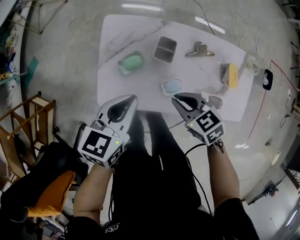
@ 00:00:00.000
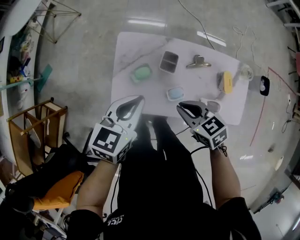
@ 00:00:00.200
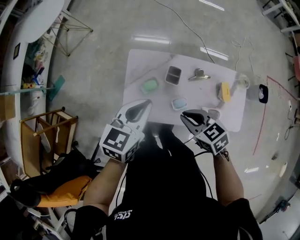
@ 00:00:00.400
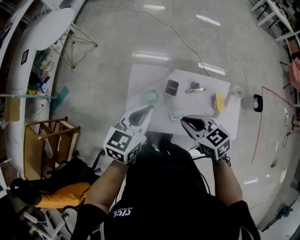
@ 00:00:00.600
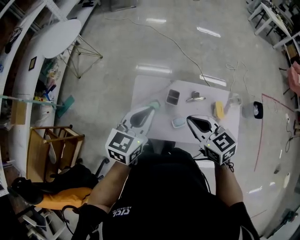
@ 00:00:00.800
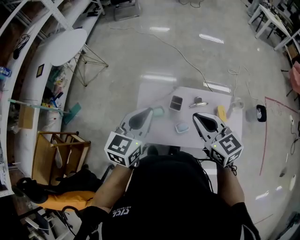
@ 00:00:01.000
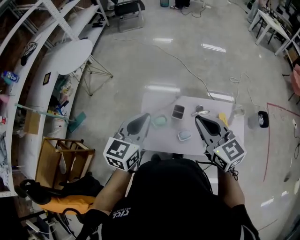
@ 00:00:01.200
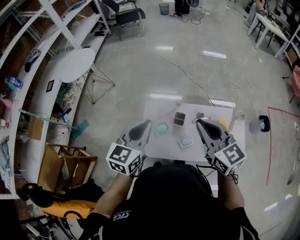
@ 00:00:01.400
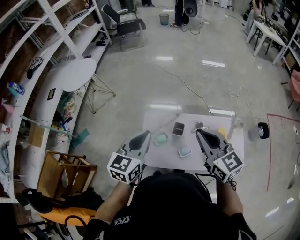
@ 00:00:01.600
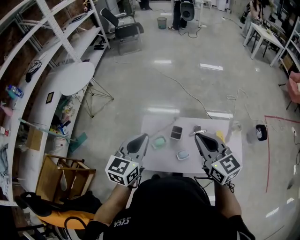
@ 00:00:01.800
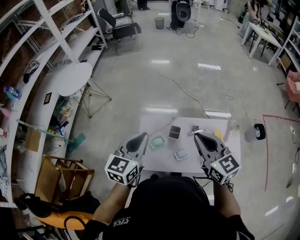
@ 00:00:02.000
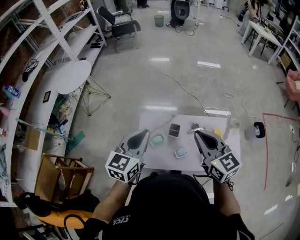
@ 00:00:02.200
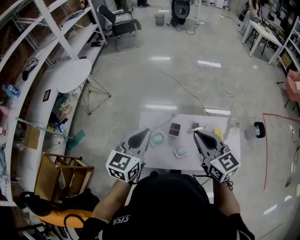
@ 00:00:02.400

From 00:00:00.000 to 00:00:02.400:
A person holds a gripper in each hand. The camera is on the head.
From 00:00:00.000 to 00:00:01.200: Both grippers travel together upward, approximately 35 cm. The right gripper tilts its fingers about 30 degrees upward. The left gripper swivels approximately 30 degrees.
From 00:00:01.200 to 00:00:02.400: The grippers stay close to where they were, moving slightly.

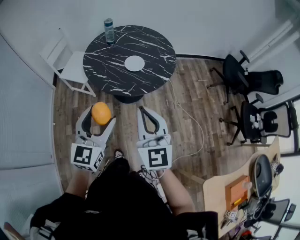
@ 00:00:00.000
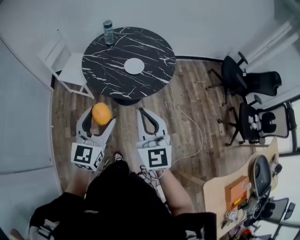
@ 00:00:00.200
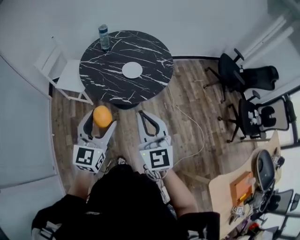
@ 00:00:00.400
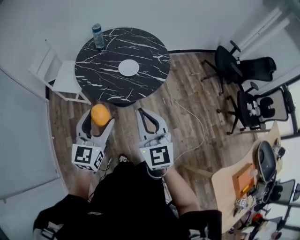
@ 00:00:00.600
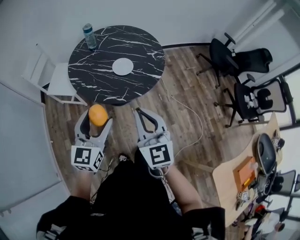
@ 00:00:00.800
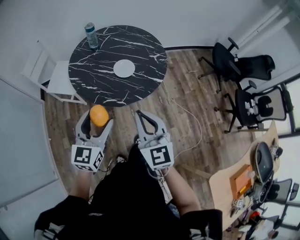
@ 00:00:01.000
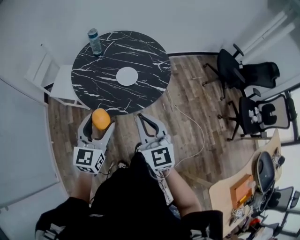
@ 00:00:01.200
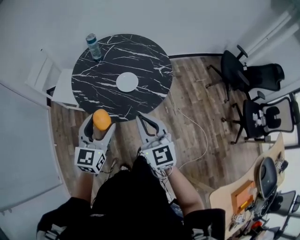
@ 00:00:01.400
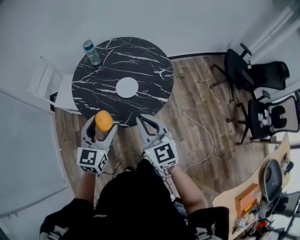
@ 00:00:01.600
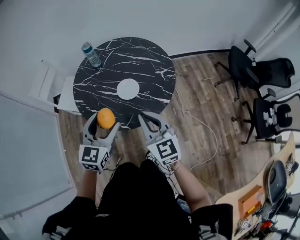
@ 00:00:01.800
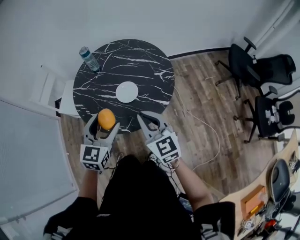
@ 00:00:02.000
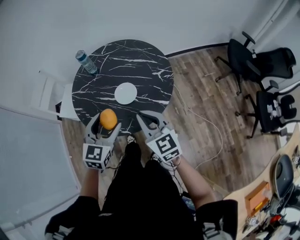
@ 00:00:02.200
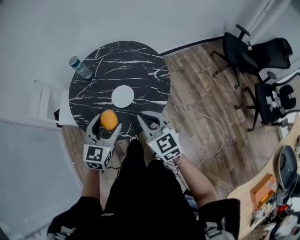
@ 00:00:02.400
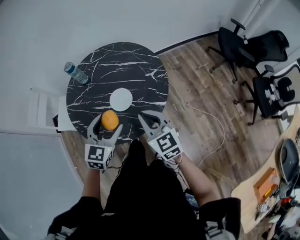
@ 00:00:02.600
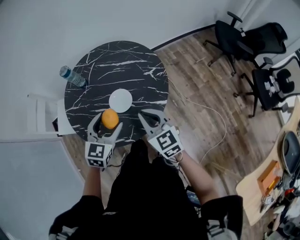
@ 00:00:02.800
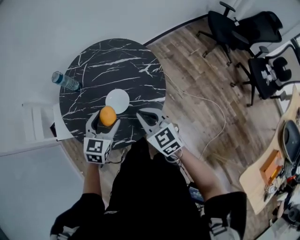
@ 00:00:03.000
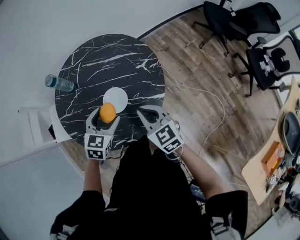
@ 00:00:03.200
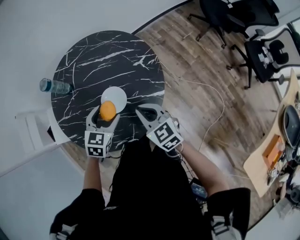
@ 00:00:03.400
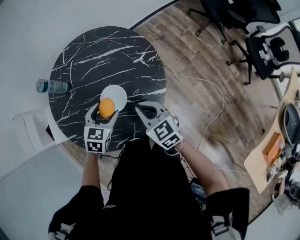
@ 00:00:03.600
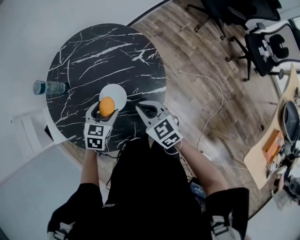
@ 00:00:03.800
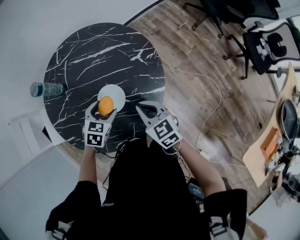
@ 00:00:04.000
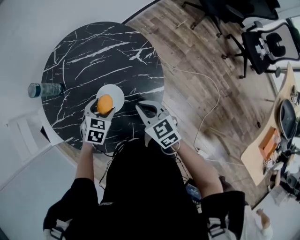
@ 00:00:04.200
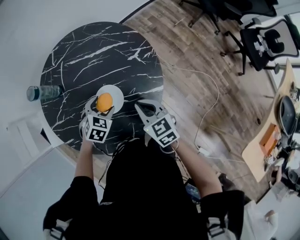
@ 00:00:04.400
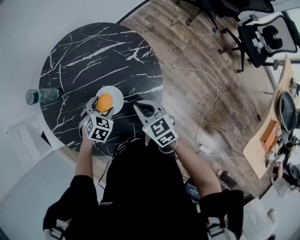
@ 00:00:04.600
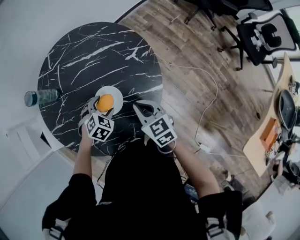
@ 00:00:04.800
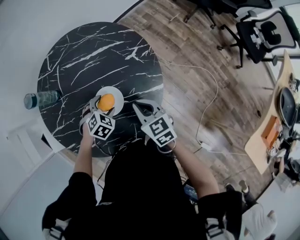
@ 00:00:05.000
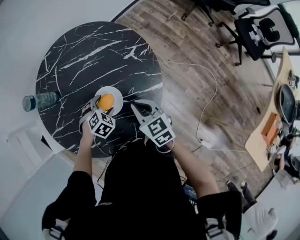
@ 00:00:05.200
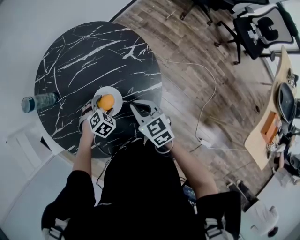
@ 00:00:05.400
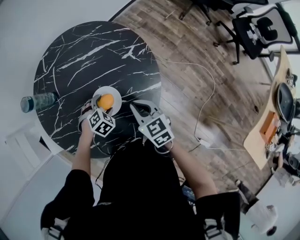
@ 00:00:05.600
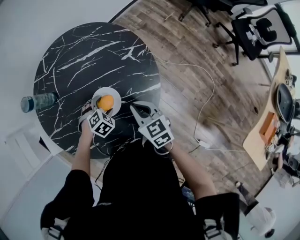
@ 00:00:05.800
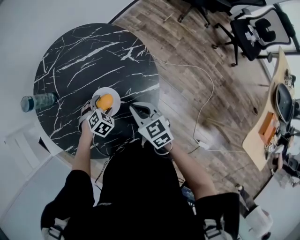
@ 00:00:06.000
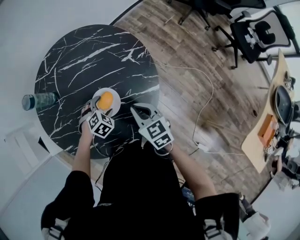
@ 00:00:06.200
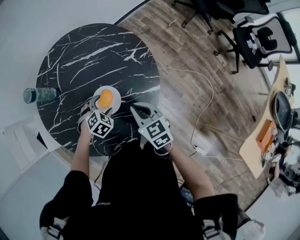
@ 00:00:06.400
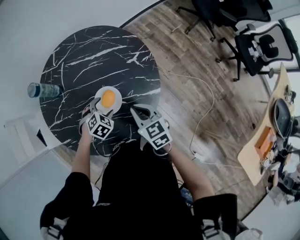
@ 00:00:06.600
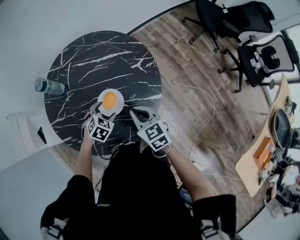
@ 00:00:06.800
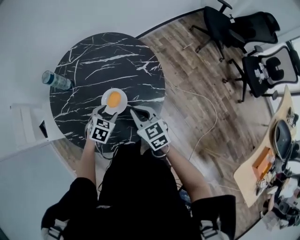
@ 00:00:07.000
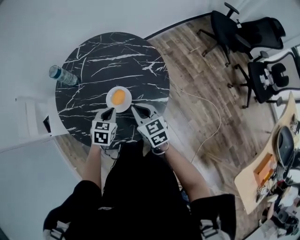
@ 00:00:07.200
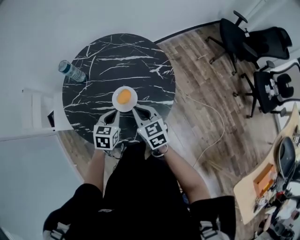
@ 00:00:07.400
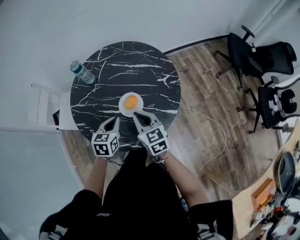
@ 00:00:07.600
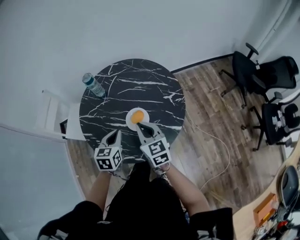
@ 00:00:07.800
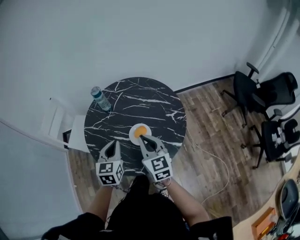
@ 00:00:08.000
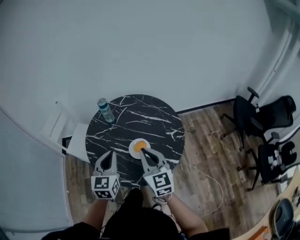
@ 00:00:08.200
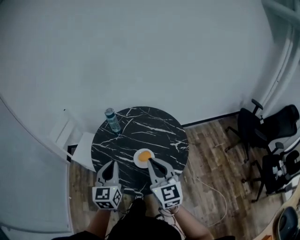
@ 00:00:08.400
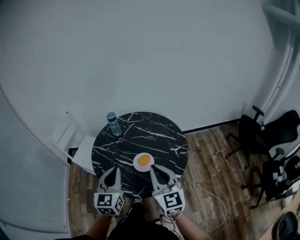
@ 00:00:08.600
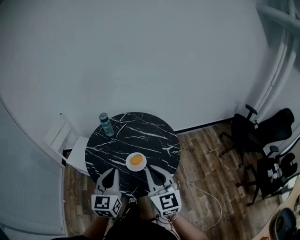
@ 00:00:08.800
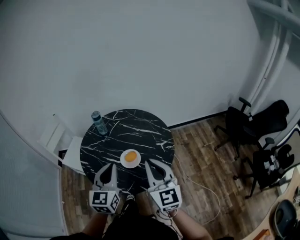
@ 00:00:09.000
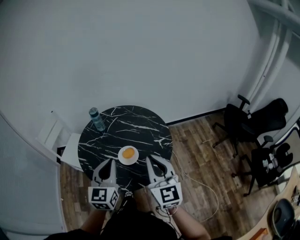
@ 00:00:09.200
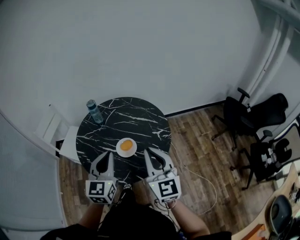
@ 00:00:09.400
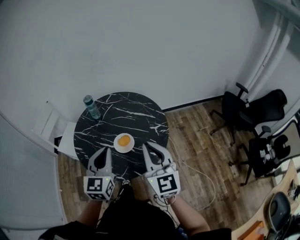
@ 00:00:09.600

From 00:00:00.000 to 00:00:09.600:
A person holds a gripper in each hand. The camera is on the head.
From 00:00:00.000 to 00:00:01.600: Both grippers travel together forward, approximately 20 cm.
From 00:00:01.600 to 00:00:03.200: The two grippers go some 20 cm forward and downward. The left gripper swivels some 30 degrees; the right gripper changes its angle by approximately 20 degrees.
From 00:00:03.200 to 00:00:04.800: The left gripper moves downward and forward, about 20 cm, and turns by some 40 degrees. The right gripper travels downward by about 10 cm.
From 00:00:04.800 to 00:00:06.400: There are only small adjustments of the grippers.
From 00:00:06.400 to 00:00:08.000: The right gripper travels upward by about 15 cm, and turns by about 30 degrees, while the left gripper travels upward by approximately 25 cm, tips its fingers upward by approximately 40 degrees, and closes up.
From 00:00:08.000 to 00:00:09.600: The right gripper is displaced upward, to the right and backward by about 20 cm. The left gripper is displaced upward, backward and to the right by roughly 15 cm.

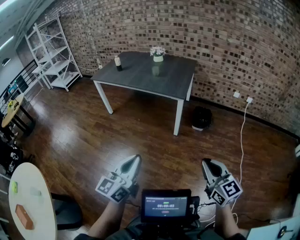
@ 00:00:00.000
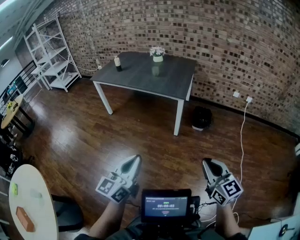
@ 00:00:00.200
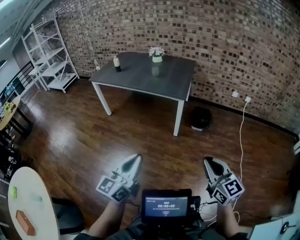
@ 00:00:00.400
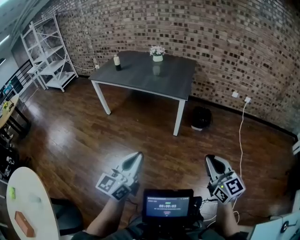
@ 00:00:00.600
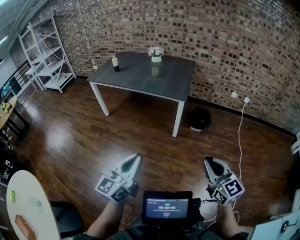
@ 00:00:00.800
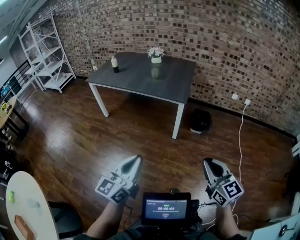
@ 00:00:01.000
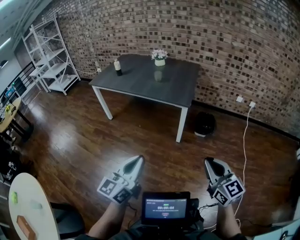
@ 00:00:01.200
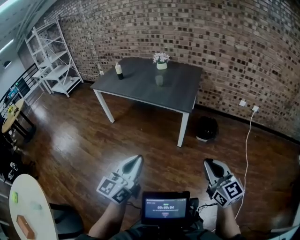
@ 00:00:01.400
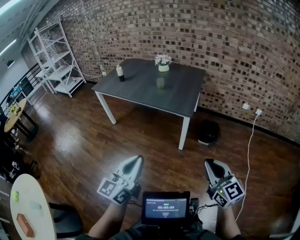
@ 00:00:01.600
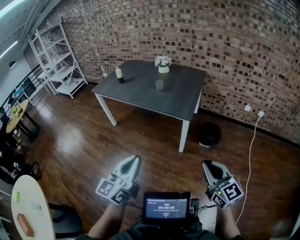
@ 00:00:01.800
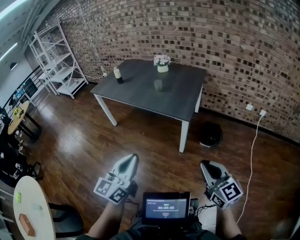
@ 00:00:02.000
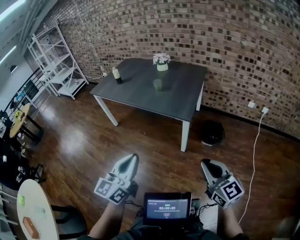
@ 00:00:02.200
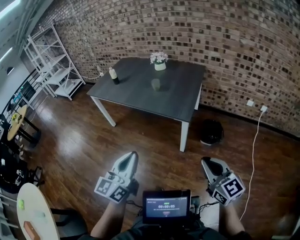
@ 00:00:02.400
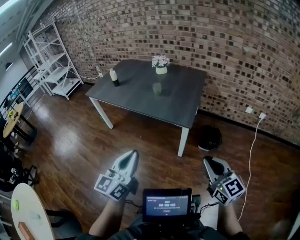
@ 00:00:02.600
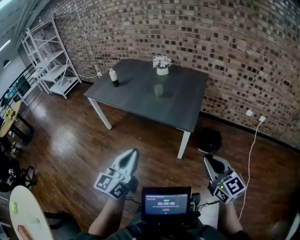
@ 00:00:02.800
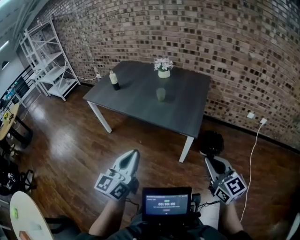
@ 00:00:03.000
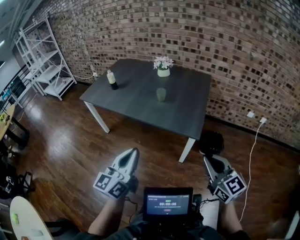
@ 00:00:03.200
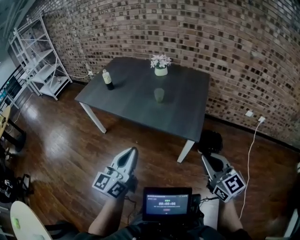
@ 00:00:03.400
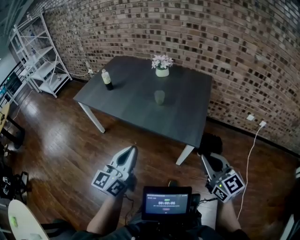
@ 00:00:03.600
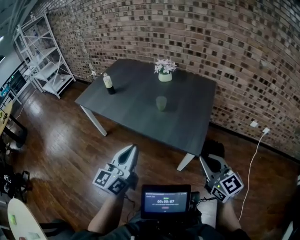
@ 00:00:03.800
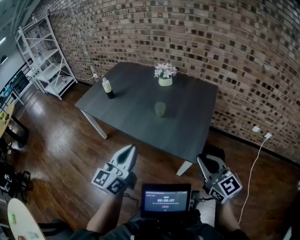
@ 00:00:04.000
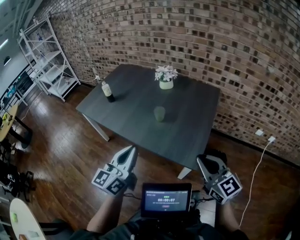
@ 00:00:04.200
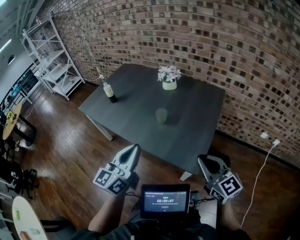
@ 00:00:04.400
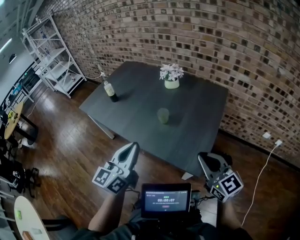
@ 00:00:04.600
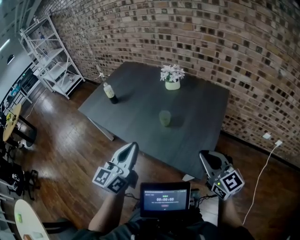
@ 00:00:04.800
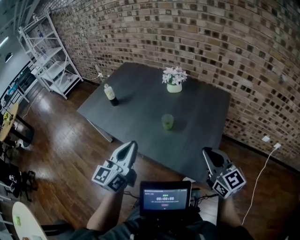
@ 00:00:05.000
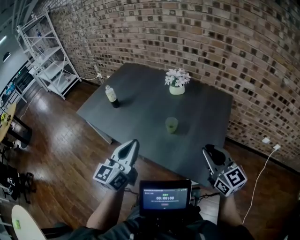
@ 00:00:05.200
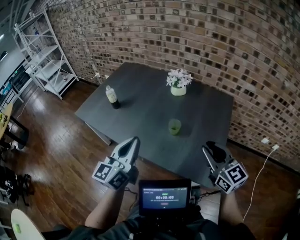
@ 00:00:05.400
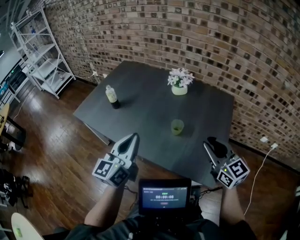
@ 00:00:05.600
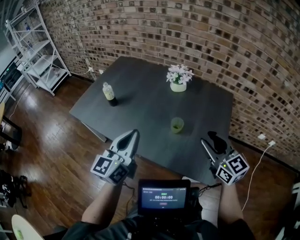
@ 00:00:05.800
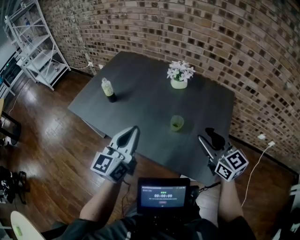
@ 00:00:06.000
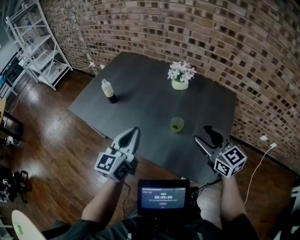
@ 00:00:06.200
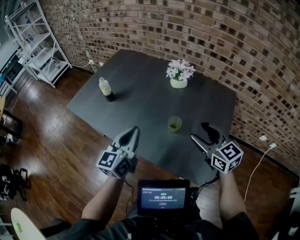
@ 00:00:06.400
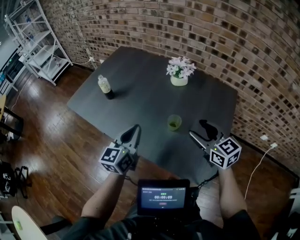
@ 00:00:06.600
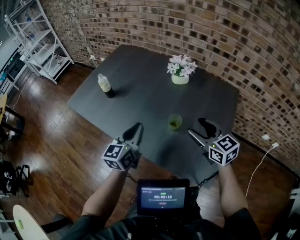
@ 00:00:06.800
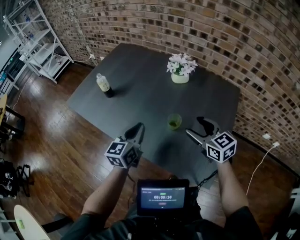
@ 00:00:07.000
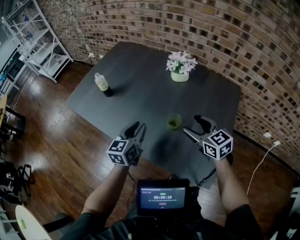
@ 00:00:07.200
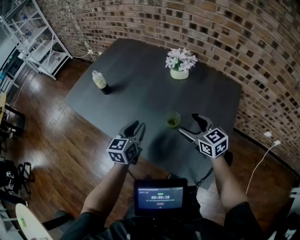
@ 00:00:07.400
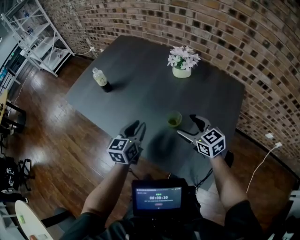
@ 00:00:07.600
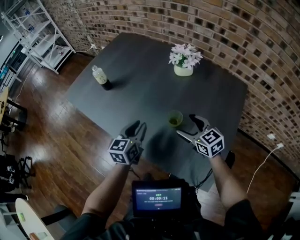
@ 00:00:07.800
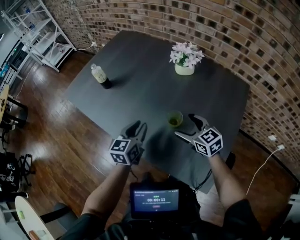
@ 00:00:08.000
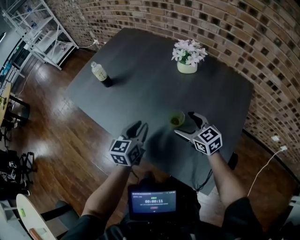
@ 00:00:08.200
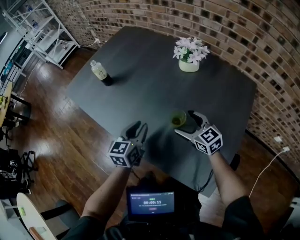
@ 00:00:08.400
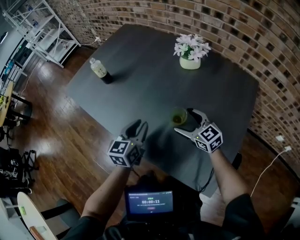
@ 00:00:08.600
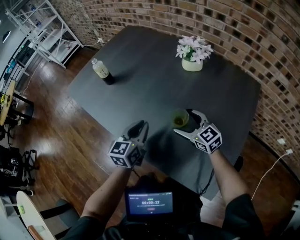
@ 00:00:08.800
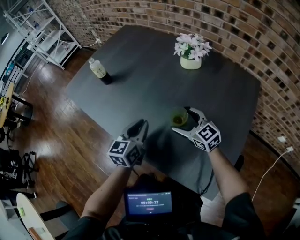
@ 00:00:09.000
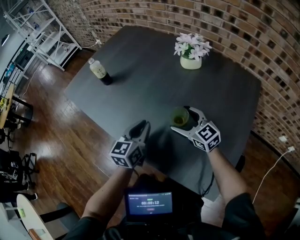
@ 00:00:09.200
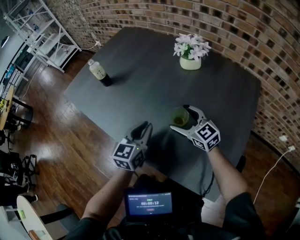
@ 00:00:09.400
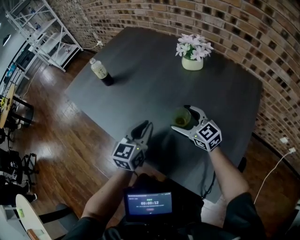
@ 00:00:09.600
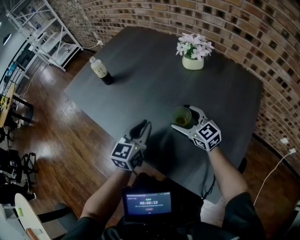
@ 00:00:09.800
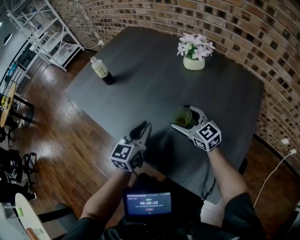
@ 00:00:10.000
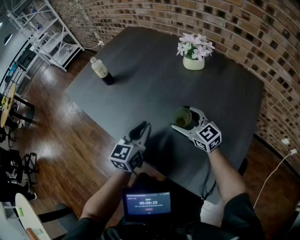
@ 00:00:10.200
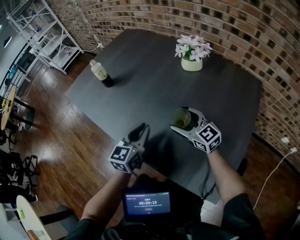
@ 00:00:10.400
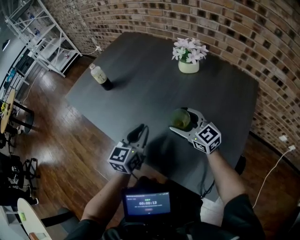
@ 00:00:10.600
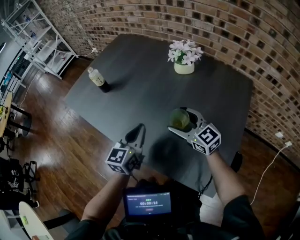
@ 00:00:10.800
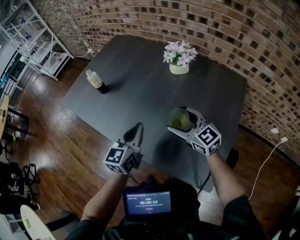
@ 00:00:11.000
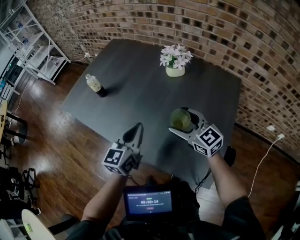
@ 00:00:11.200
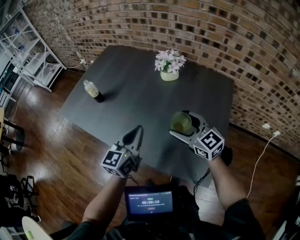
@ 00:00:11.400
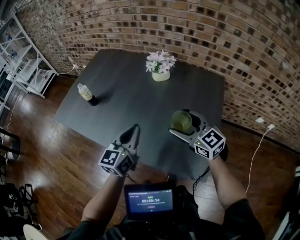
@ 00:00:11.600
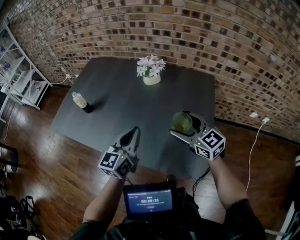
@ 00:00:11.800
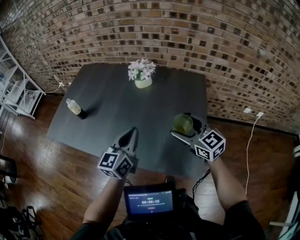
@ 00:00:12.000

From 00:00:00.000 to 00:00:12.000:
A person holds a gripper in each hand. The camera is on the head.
From 00:00:00.000 to 00:00:01.600: Both grippers travel together forward, roughly 15 cm.
From 00:00:01.600 to 00:00:03.000: Both grippers travel together forward, about 25 cm.
From 00:00:03.000 to 00:00:04.400: Both grippers travel together forward, approximately 30 cm.
From 00:00:04.400 to 00:00:06.000: Both grippers move forward and to the left, some 25 cm.
From 00:00:06.000 to 00:00:07.600: The right gripper heads downward and forward, covering about 20 cm, rotates roughly 20 degrees, and opens up. The left gripper shifts approximately 20 cm downward, forward and to the right, rotates roughly 20 degrees, and opens.
From 00:00:07.600 to 00:00:09.000: The left gripper is displaced downward by some 5 cm; the right gripper is displaced downward and forward by roughly 10 cm.
From 00:00:09.000 to 00:00:10.400: The grippers make only small movements.
From 00:00:10.400 to 00:00:12.000: The left gripper goes approximately 15 cm upward, and swivels some 20 degrees. The right gripper moves upward, backward and to the right, approximately 25 cm, and changes its angle by roughly 30 degrees.
